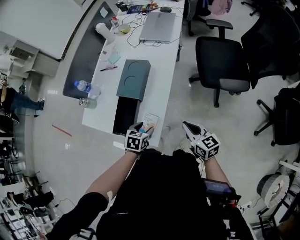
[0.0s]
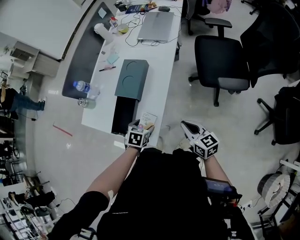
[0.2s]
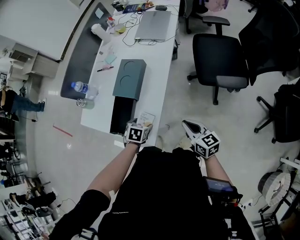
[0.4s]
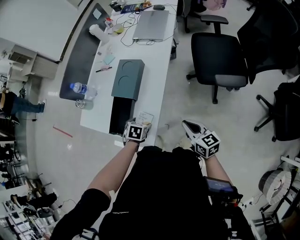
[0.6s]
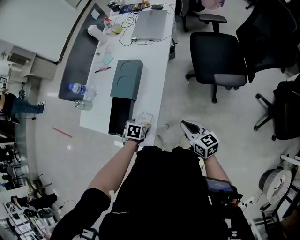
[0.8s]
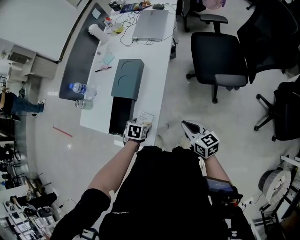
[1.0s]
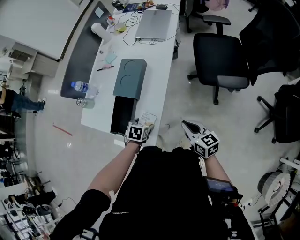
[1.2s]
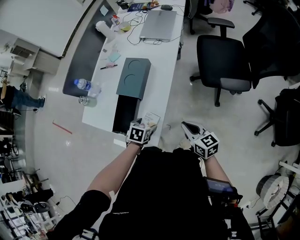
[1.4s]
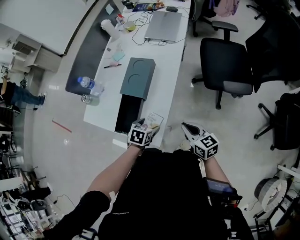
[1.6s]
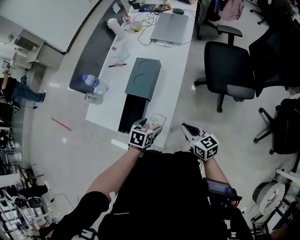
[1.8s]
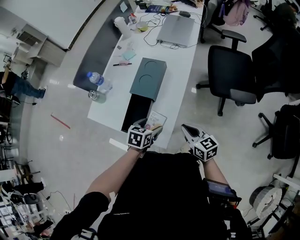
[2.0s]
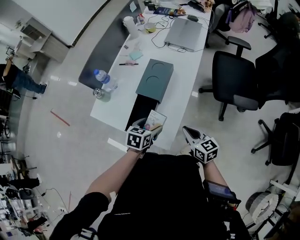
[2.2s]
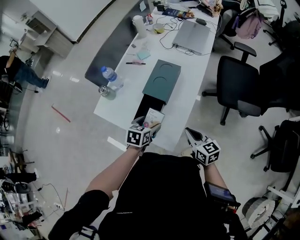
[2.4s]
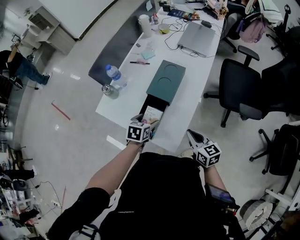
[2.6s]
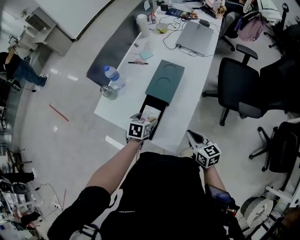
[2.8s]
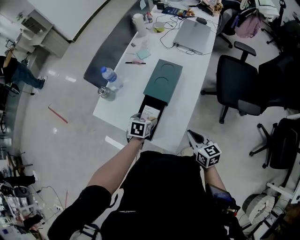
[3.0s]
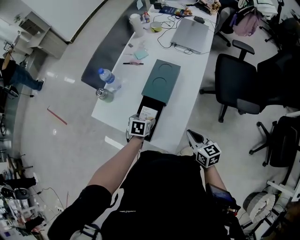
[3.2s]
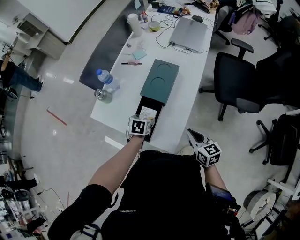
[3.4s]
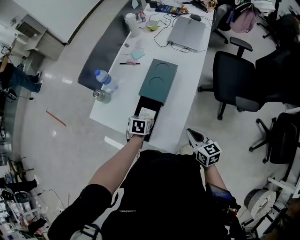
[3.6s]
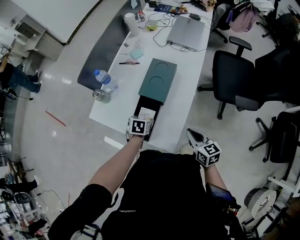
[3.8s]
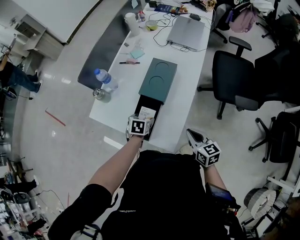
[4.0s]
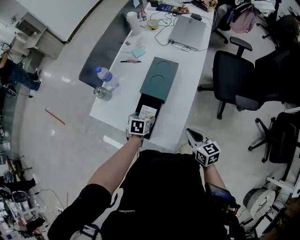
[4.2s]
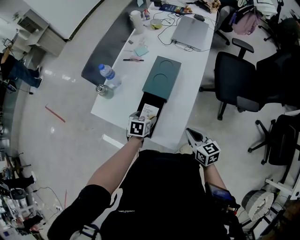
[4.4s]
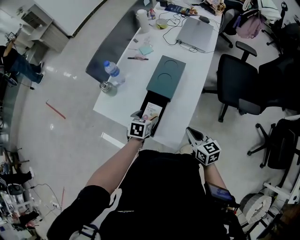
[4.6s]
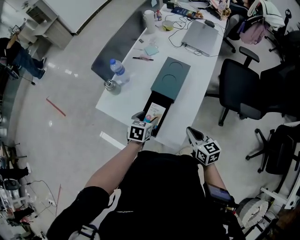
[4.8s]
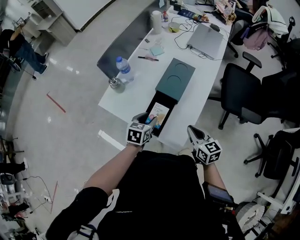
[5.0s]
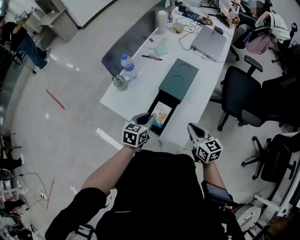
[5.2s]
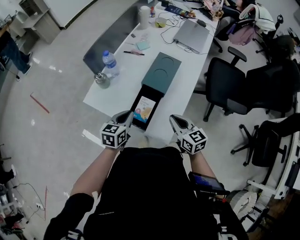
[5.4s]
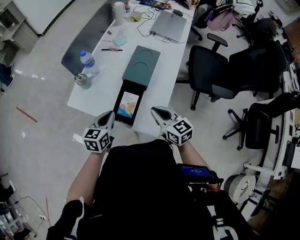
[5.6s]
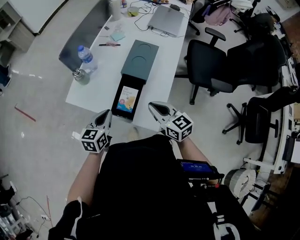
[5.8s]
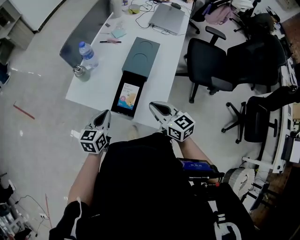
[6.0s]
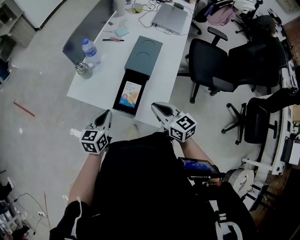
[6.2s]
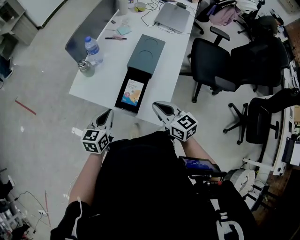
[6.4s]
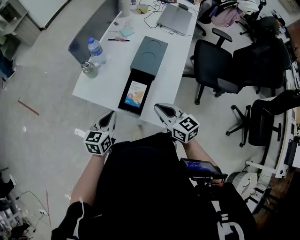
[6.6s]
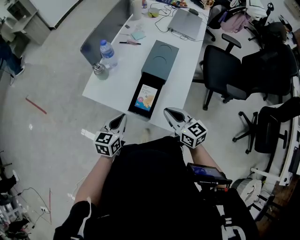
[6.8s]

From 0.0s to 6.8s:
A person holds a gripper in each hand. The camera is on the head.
From 0.0s to 1.4s: The left gripper opens up.
From 1.4s to 2.8s: The right gripper is displaced to the left by approximately 10 cm, while the left gripper goes some 15 cm to the left and forward.
From 2.8s to 4.0s: There are only small adjustments of the grippers.
From 4.0s to 5.4s: The left gripper is displaced upward and to the left by approximately 15 cm, tips its fingers upward by approximately 30 degrees, and closes up; the right gripper heads to the left, covering about 10 cm.
From 5.4s to 6.8s: The right gripper shifts by roughly 5 cm; the left gripper goes roughly 5 cm backward.

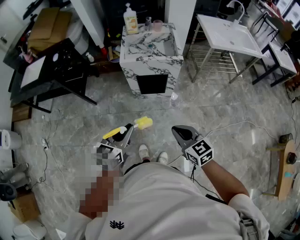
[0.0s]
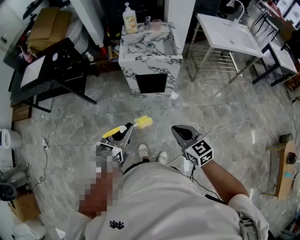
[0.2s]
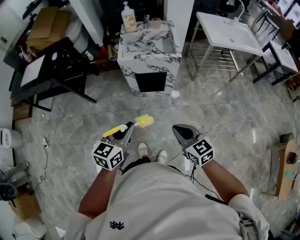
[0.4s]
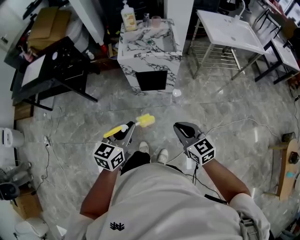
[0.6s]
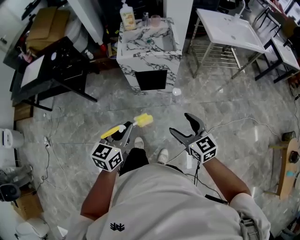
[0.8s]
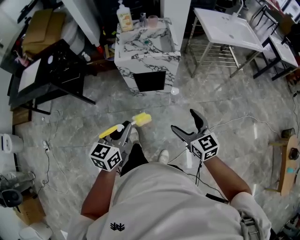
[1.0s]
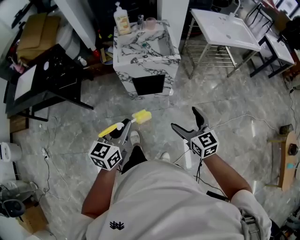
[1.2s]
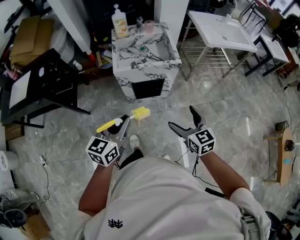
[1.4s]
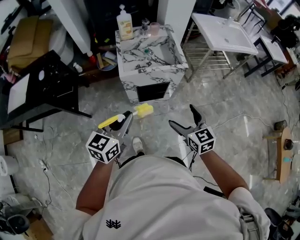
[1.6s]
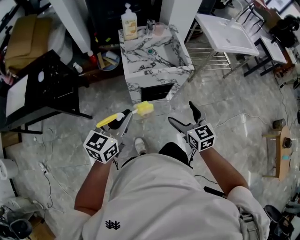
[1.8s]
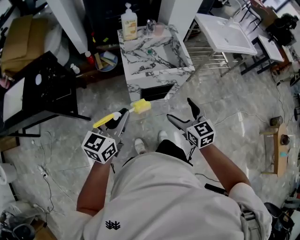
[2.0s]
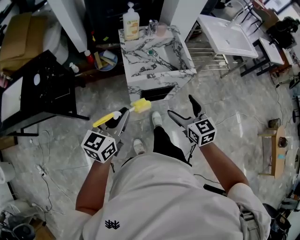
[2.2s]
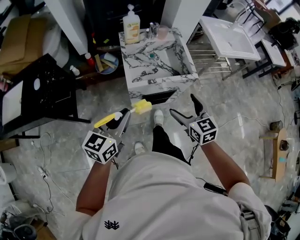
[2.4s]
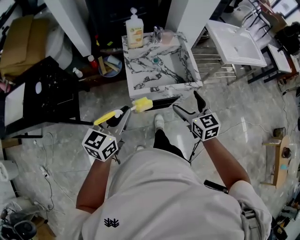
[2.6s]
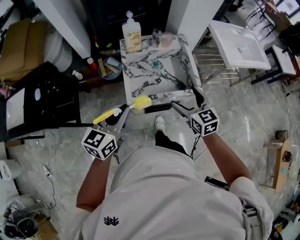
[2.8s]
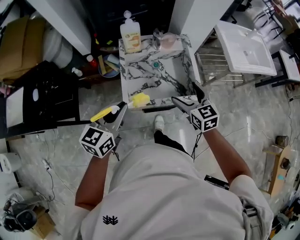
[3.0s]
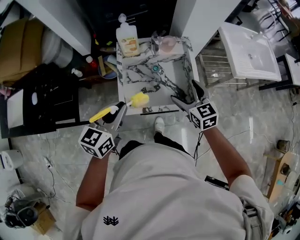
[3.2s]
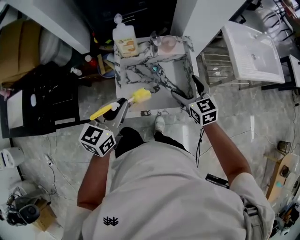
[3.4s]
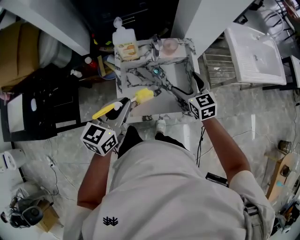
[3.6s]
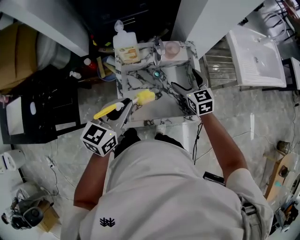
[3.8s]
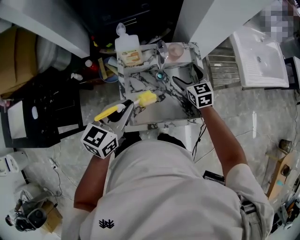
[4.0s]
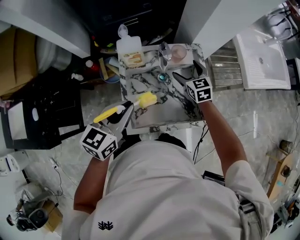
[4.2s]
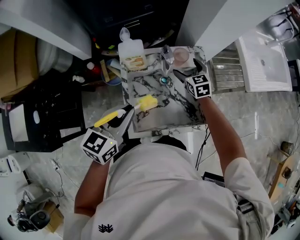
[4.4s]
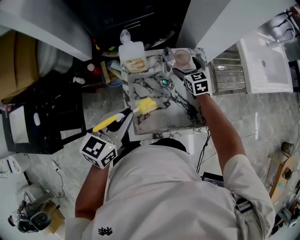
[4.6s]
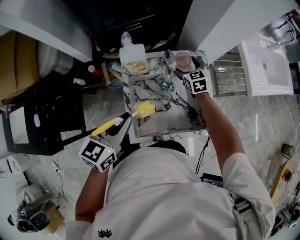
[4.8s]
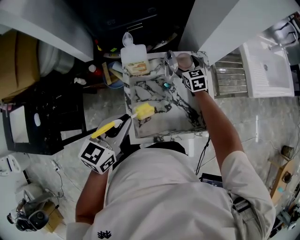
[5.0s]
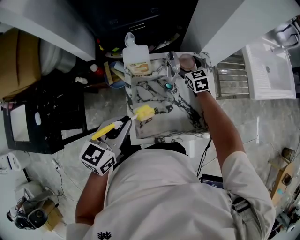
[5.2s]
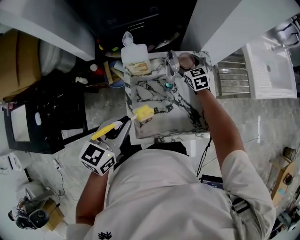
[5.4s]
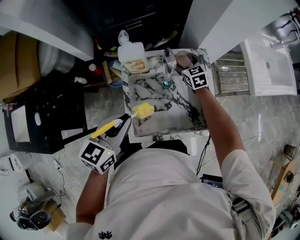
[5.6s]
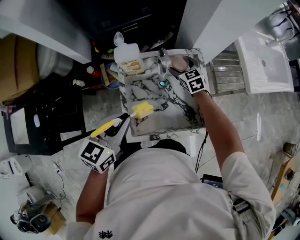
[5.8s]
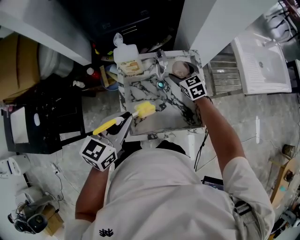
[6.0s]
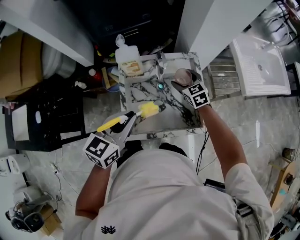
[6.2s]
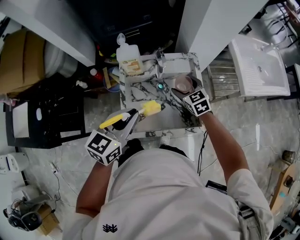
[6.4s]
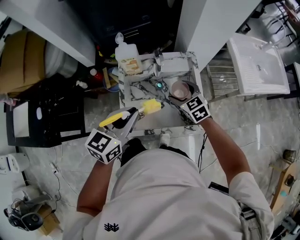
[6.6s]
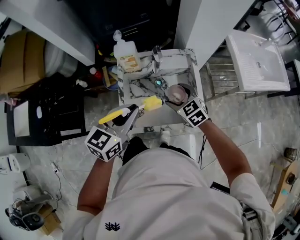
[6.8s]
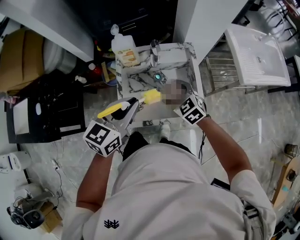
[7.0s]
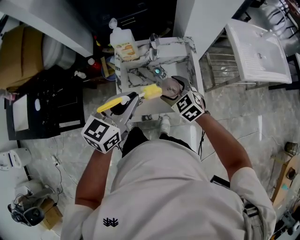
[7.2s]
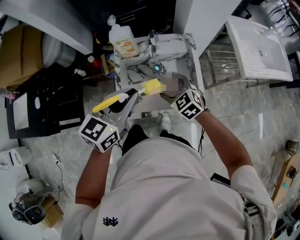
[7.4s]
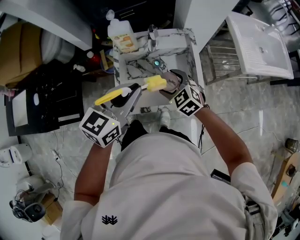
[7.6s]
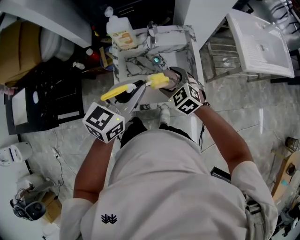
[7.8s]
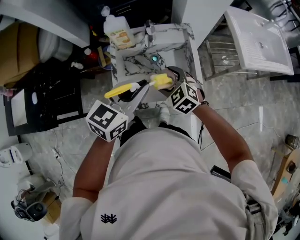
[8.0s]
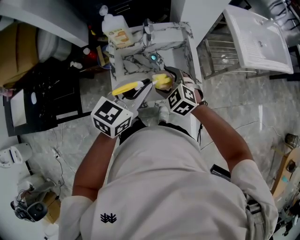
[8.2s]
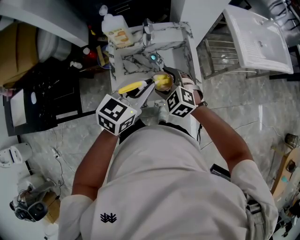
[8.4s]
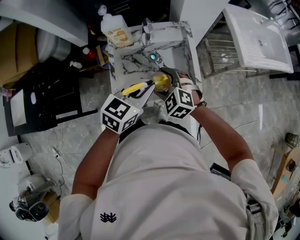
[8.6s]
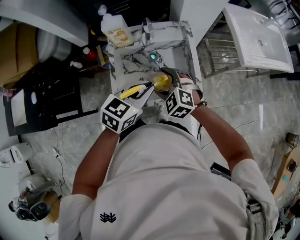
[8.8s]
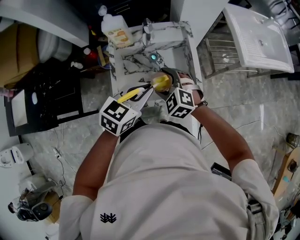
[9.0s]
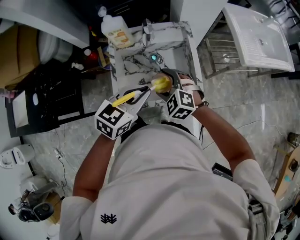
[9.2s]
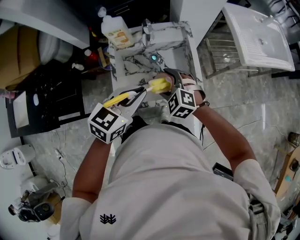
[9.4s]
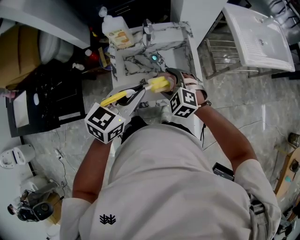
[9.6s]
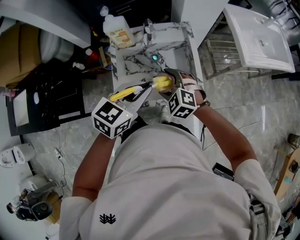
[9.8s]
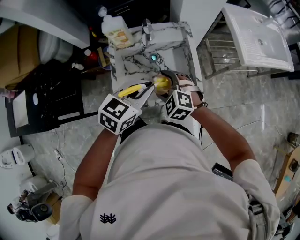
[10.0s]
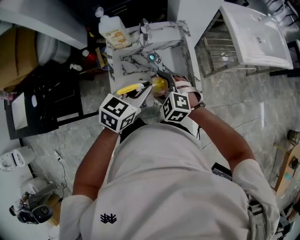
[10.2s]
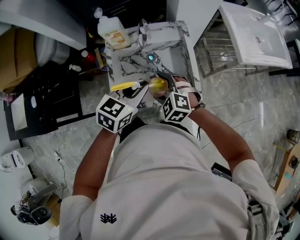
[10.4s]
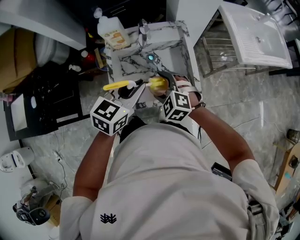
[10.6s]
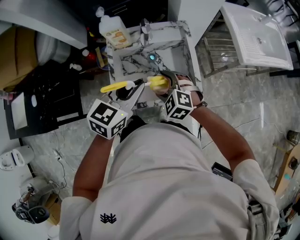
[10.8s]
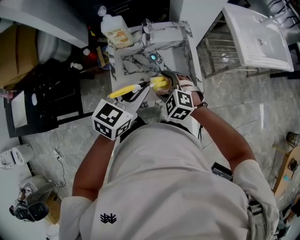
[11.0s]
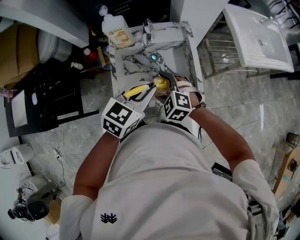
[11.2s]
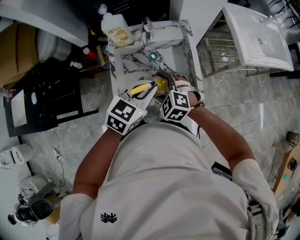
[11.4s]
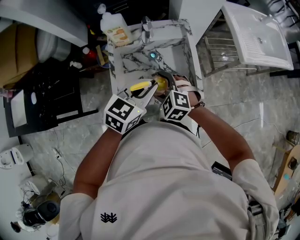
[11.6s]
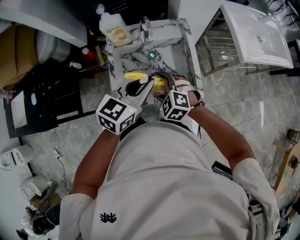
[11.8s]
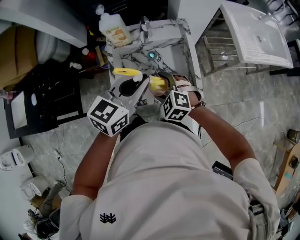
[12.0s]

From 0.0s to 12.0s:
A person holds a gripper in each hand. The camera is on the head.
From 0.0s to 1.6s: The left gripper shifts about 20 cm forward and to the left. The right gripper heads forward, covering approximately 20 cm, and opens up.
From 1.6s to 3.0s: The grippers both shift forward by approximately 30 cm.
From 3.0s to 4.4s: The left gripper moves forward, approximately 15 cm. The right gripper shifts about 35 cm forward and downward.
From 6.0s to 7.6s: The right gripper goes about 20 cm backward, and swivels about 20 degrees; the left gripper is displaced to the right by roughly 10 cm.
From 7.6s to 9.0s: The left gripper travels downward and to the right by roughly 10 cm.
From 9.0s to 10.4s: There are only small adjustments of the grippers.
From 10.4s to 12.0s: The left gripper moves up and down over approximately 5 cm, changing direction 2 times.

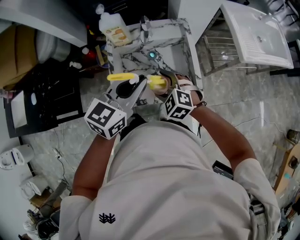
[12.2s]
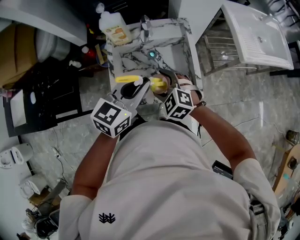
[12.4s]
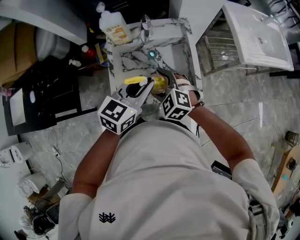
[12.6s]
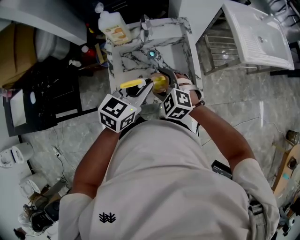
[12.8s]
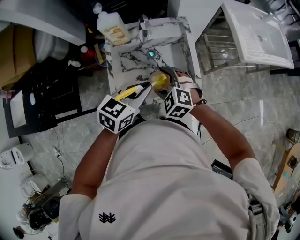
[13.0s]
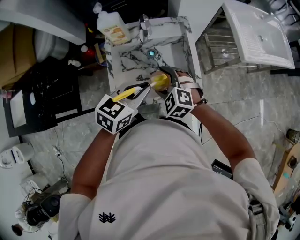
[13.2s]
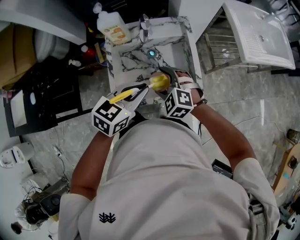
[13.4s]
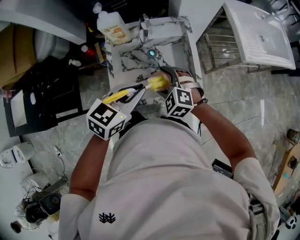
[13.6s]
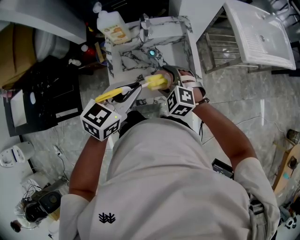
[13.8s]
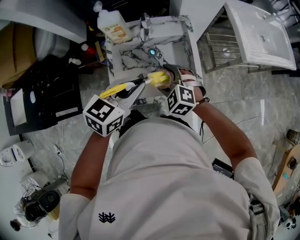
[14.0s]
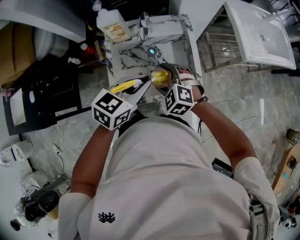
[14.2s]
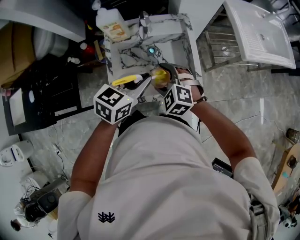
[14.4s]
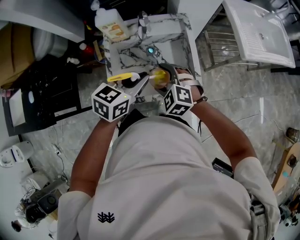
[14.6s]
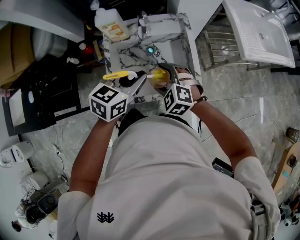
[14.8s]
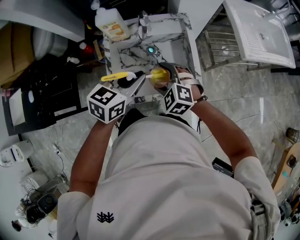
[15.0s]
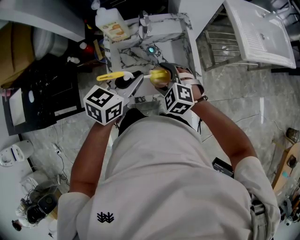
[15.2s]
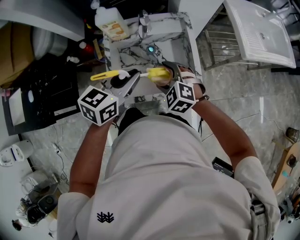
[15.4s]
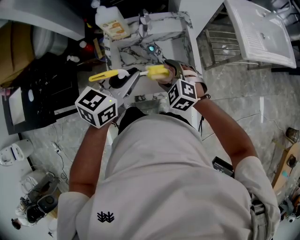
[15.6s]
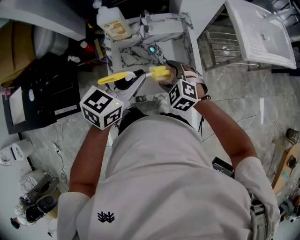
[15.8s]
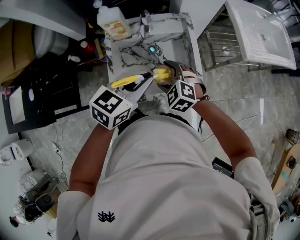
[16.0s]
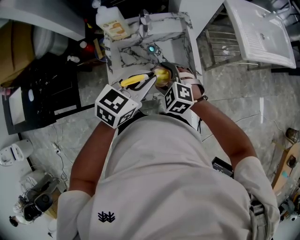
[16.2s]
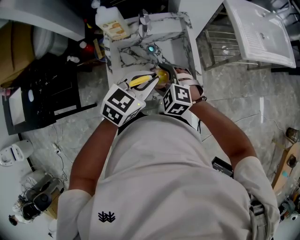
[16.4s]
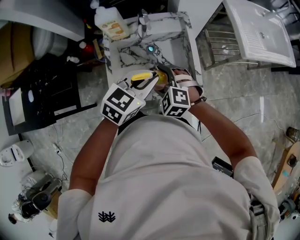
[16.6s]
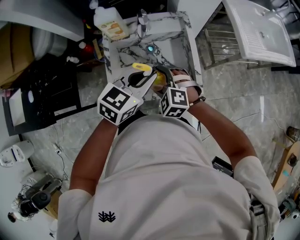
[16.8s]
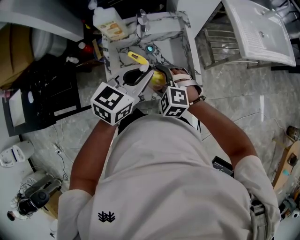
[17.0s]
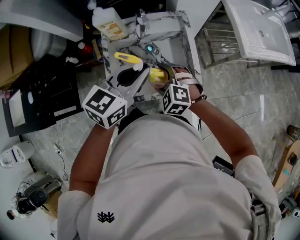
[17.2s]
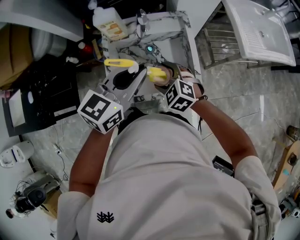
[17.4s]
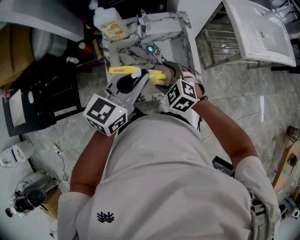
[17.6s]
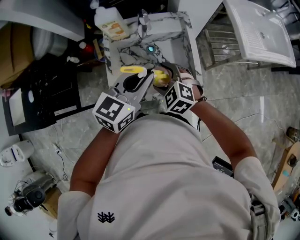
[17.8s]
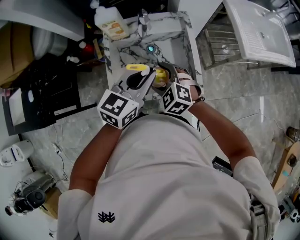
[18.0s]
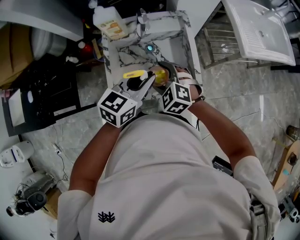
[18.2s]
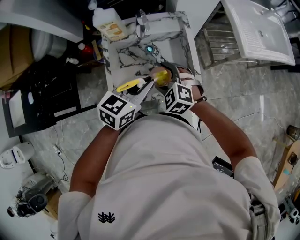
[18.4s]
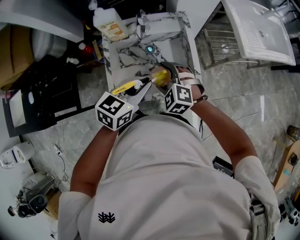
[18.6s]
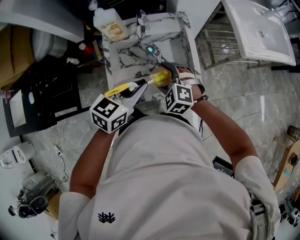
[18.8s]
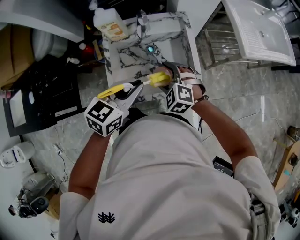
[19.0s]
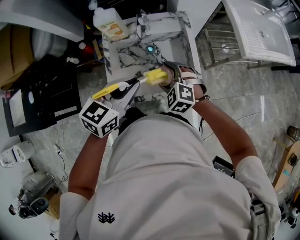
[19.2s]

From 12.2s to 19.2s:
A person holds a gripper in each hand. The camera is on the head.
From 13.6s to 16.4s: The grippers stay close to where they were, moving slightly.
From 17.8s to 19.2s: There are only small adjustments of the grippers.
